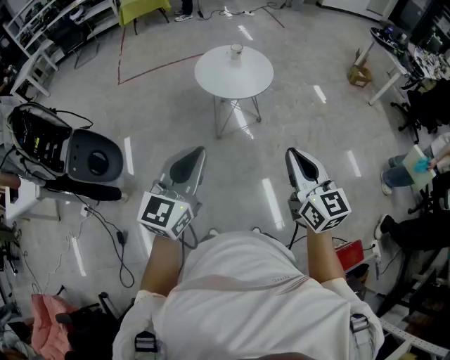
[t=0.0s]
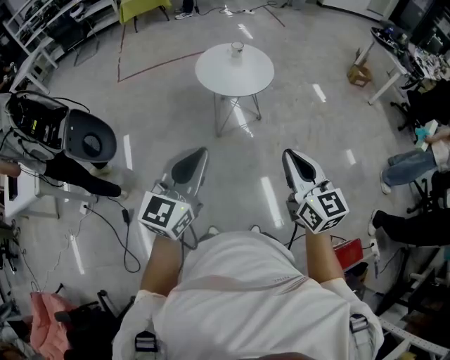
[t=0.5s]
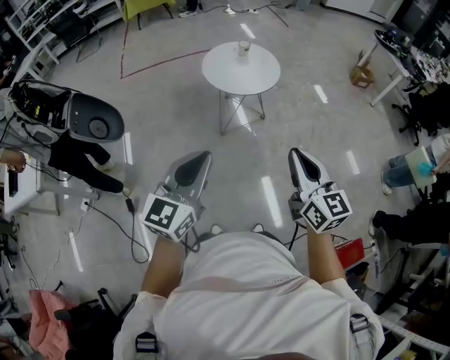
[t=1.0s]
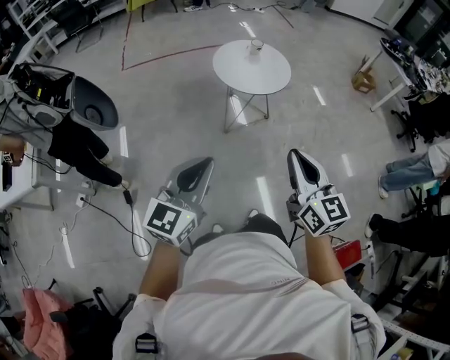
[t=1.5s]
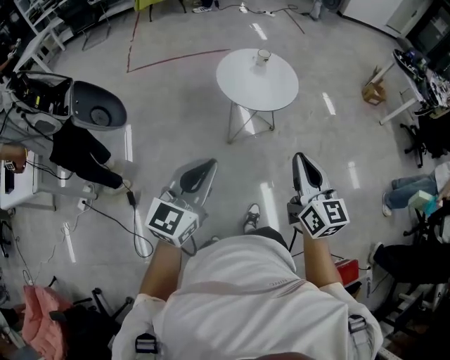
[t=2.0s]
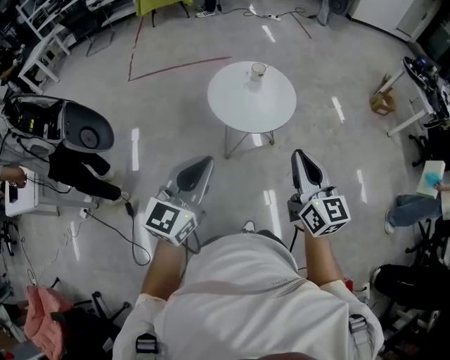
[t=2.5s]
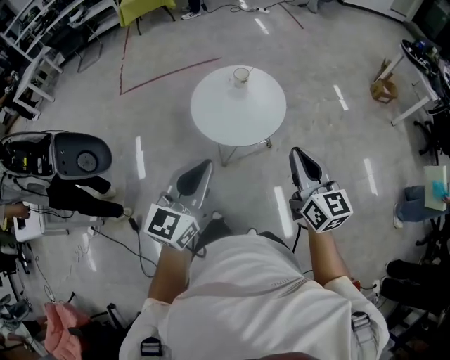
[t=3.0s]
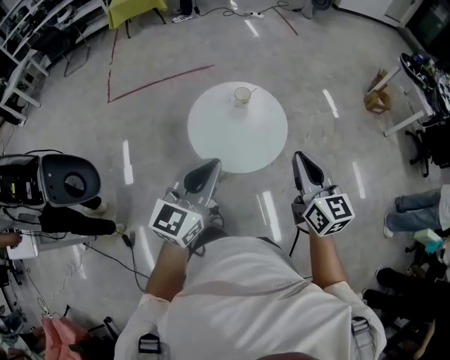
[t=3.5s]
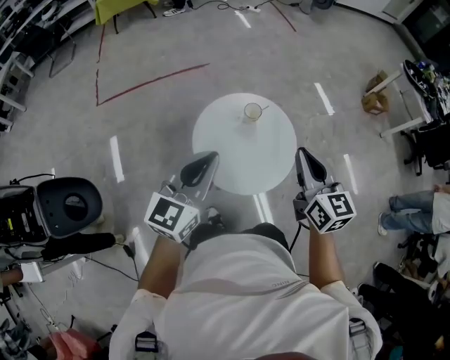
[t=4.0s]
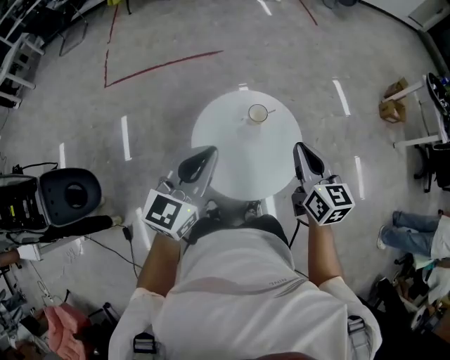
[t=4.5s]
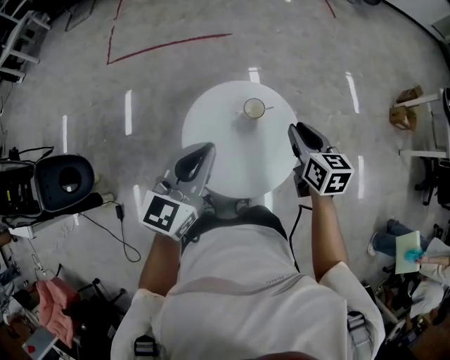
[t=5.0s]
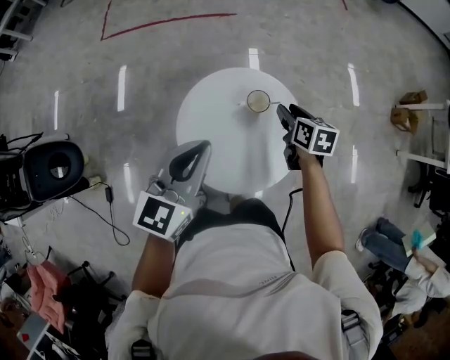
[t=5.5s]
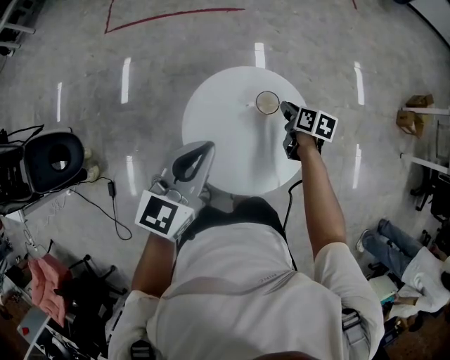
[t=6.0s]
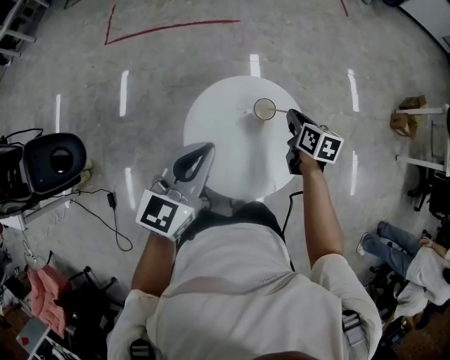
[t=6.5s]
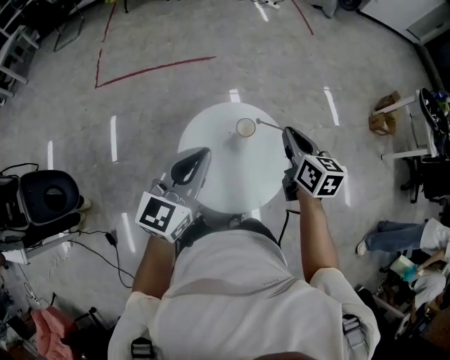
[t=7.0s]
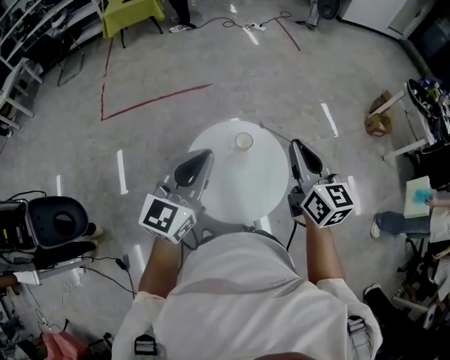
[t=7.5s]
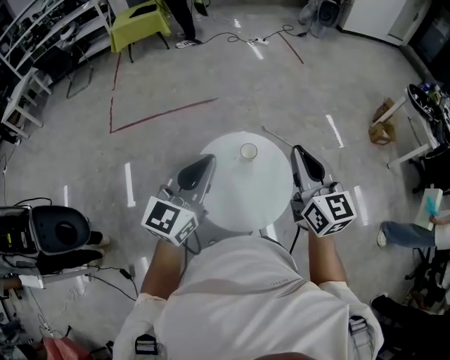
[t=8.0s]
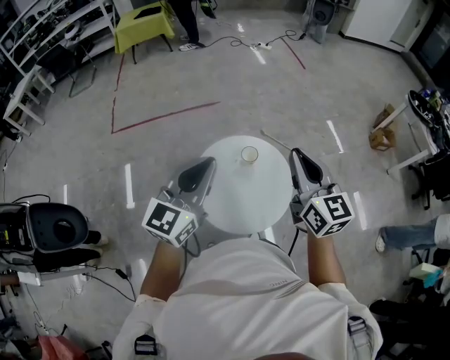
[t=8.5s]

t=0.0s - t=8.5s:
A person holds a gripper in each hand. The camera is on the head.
t=0.0s - t=2.0s: The right gripper moves forward and to the left, some 15 cm. The left gripper travels to the left and forward by approximately 15 cm.
t=2.0s - t=4.0s: Both grippers are carried forward, roughly 70 cm.
t=4.0s - t=6.5s: The right gripper travels forward and downward by about 40 cm, rotates approximately 40 degrees, and opens, then closes again. The left gripper heads forward and downward, covering roughly 20 cm.
t=6.5s - t=8.5s: The right gripper is displaced upward and backward by approximately 40 cm, and tips its fingers upward by some 40 degrees. The left gripper moves upward and backward, some 20 cm, and swivels about 20 degrees.

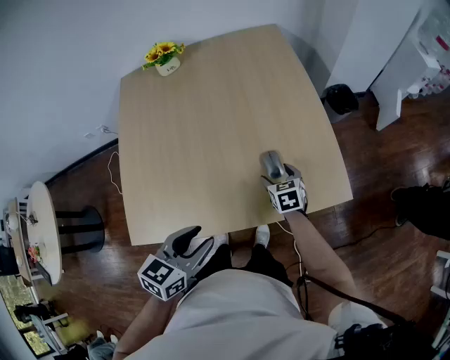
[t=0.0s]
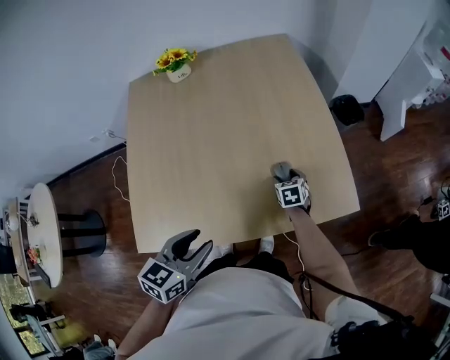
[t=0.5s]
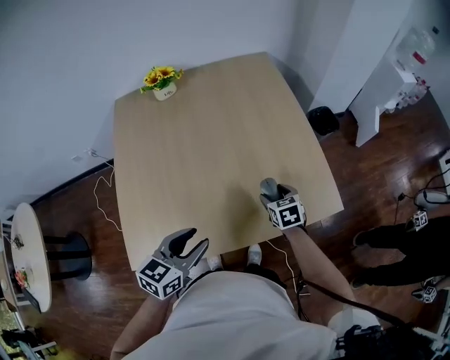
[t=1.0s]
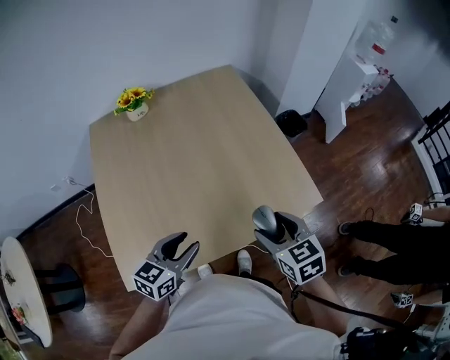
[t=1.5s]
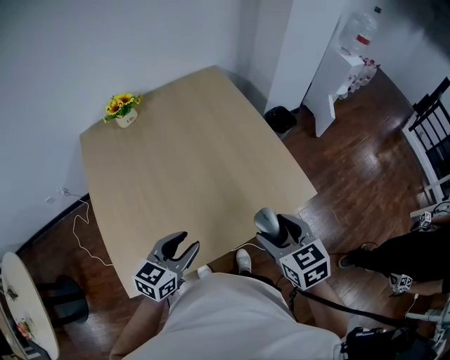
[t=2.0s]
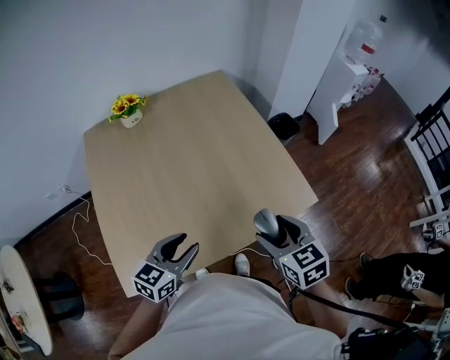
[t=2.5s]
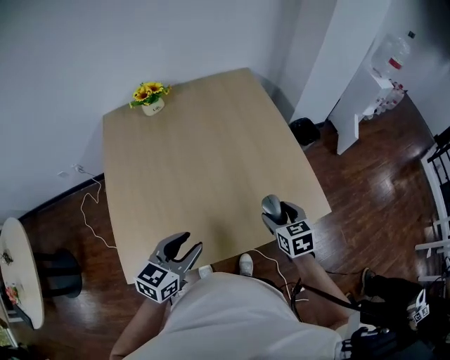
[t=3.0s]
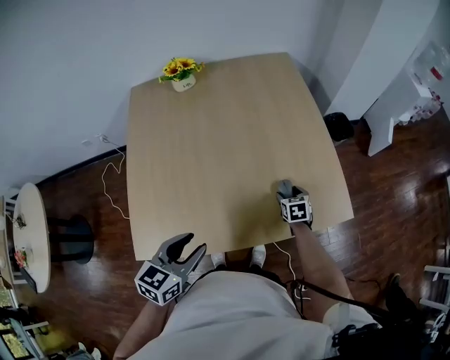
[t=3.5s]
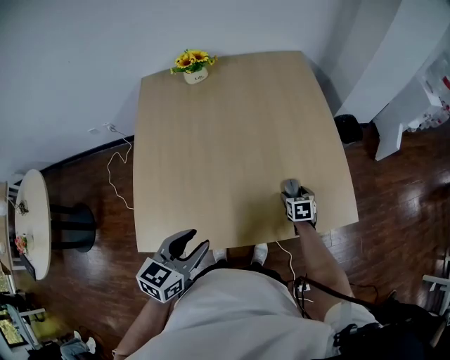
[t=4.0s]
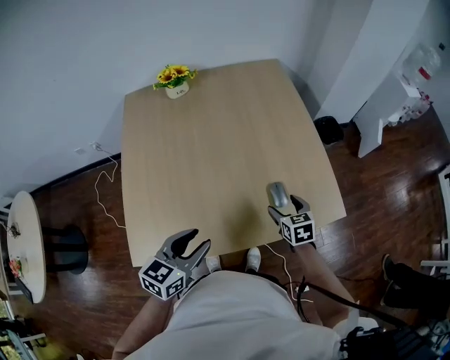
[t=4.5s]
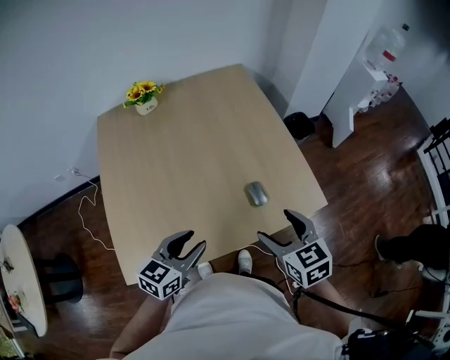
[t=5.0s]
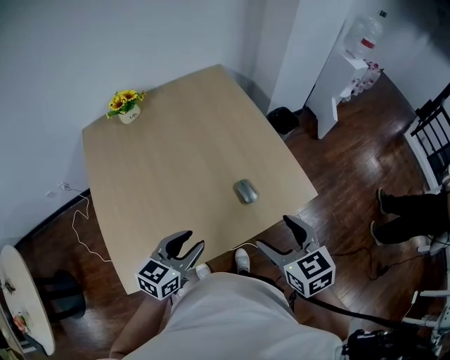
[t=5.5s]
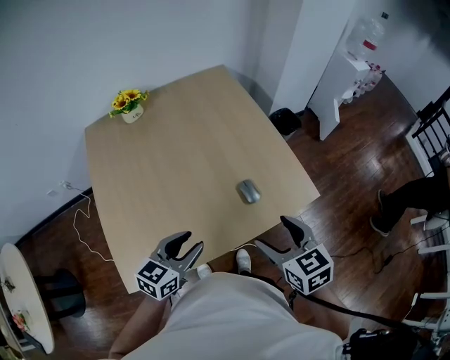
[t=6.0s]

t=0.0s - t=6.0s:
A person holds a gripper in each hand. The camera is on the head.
t=0.0s - t=2.0s: The left gripper shifts approximately 5 cm to the left; the right gripper moves upward and backward, approximately 30 cm.
t=2.0s - t=4.0s: The right gripper shifts about 35 cm downward and forward. The left gripper ends up approximately 5 cm from where it was, and rotates about 20 degrees.
t=4.0s - t=6.0s: The left gripper changes place by approximately 5 cm, and rotates approximately 20 degrees, while the right gripper moves upward and backward, about 35 cm, and changes its angle by about 20 degrees.

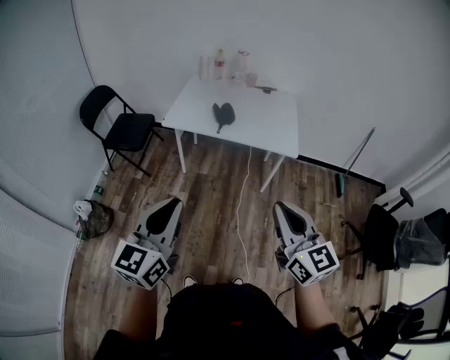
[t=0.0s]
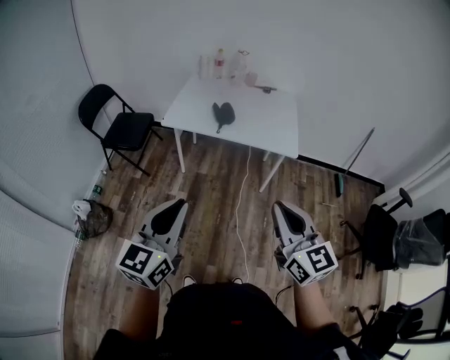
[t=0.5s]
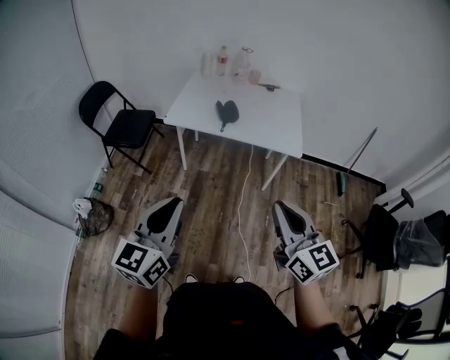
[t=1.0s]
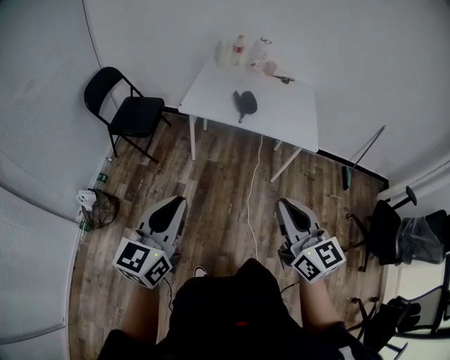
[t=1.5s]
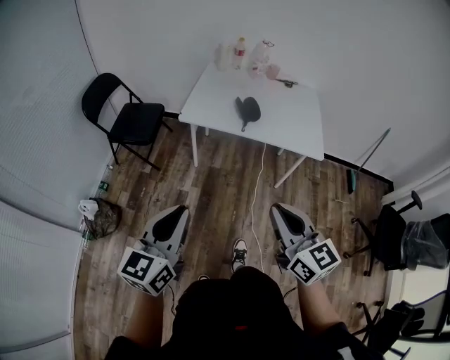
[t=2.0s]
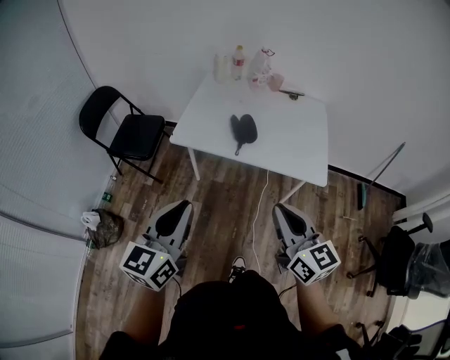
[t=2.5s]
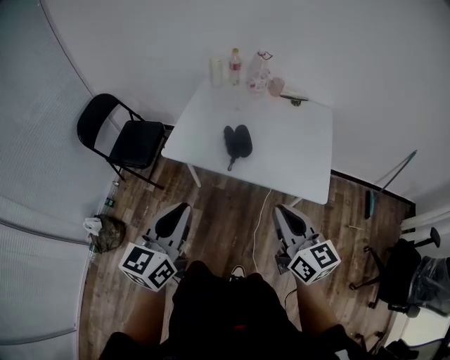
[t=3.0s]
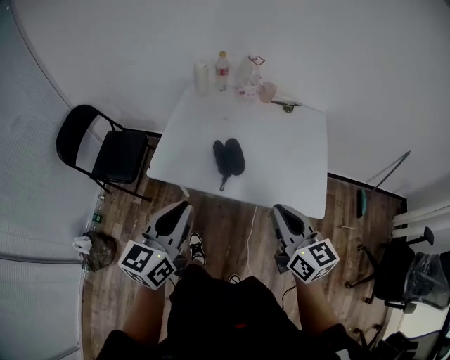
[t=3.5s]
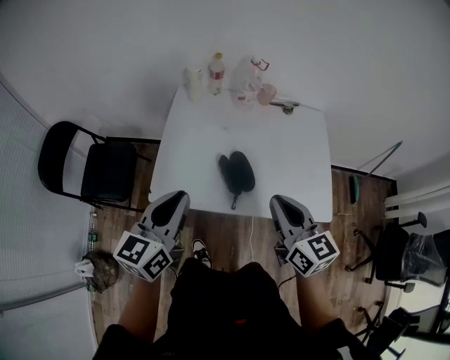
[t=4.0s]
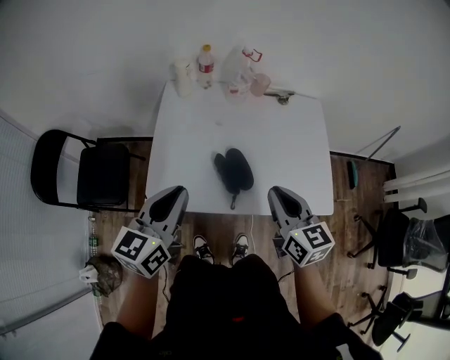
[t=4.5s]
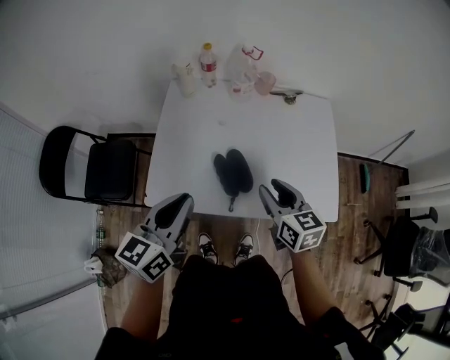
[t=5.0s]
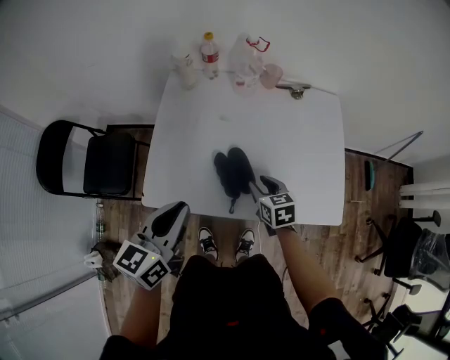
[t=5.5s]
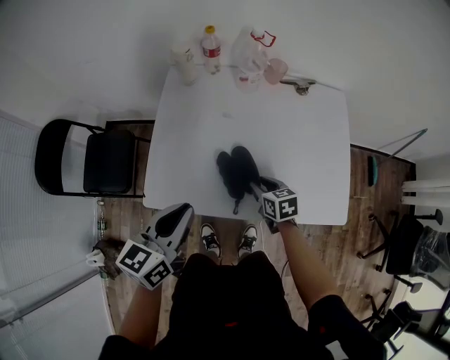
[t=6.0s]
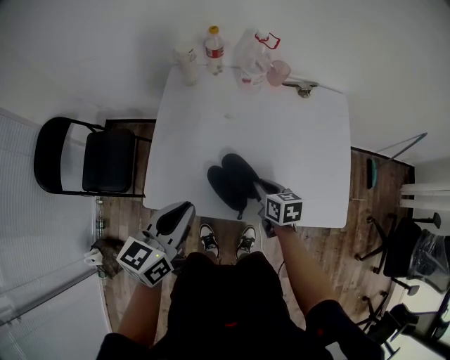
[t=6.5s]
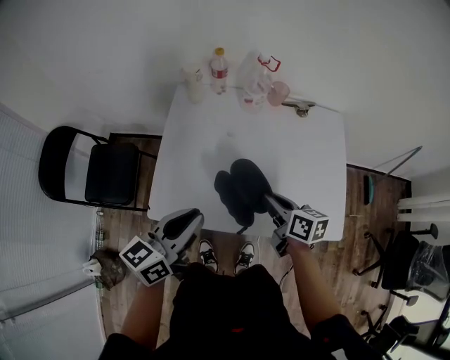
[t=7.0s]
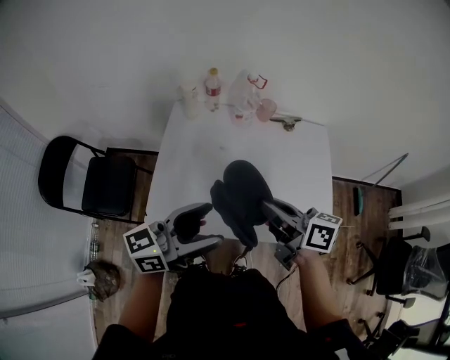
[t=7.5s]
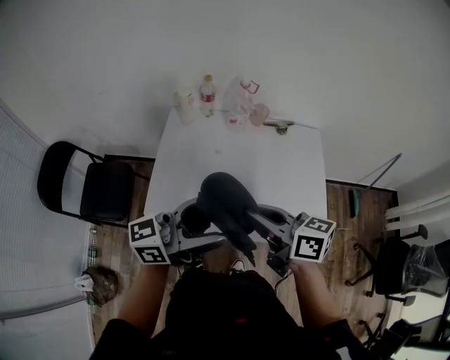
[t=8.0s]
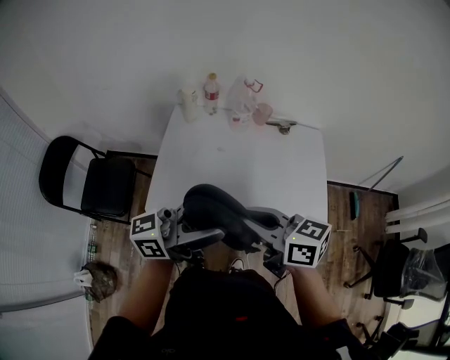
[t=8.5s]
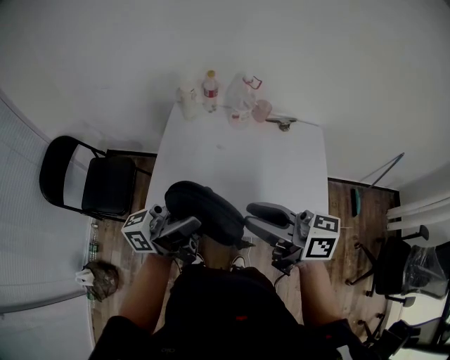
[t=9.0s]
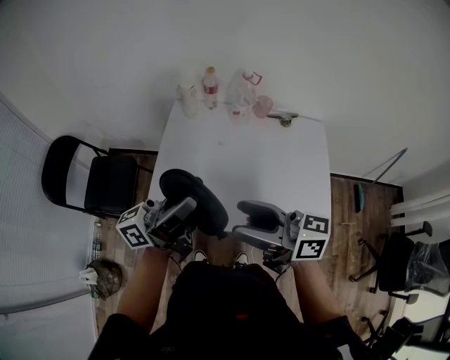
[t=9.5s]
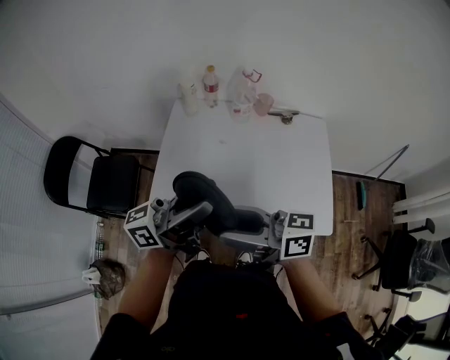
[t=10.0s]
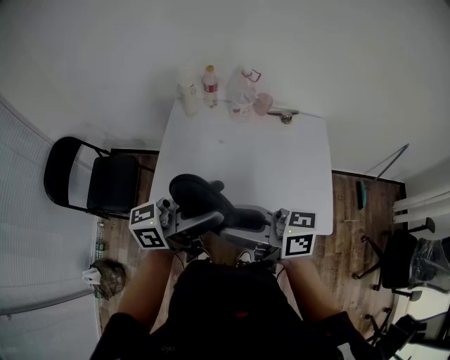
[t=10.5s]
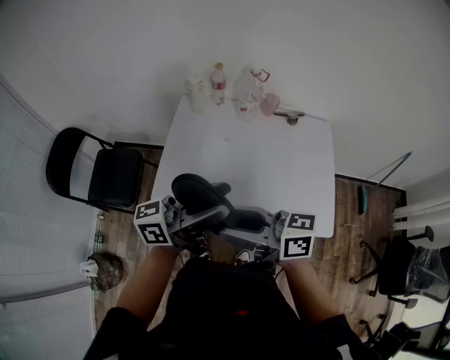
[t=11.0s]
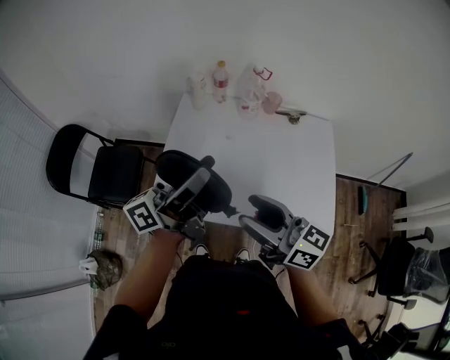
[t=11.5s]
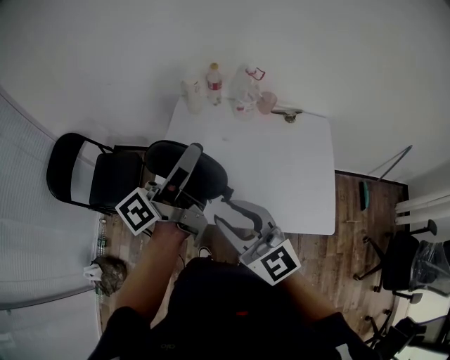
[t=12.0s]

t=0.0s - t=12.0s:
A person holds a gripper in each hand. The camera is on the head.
t=0.0s - t=2.0s: The two grippers go roughly 15 cm to the left, forward and downward.
t=2.0s - t=4.0s: The two grippers travel together, forward, roughly 50 cm.
t=4.0s - t=6.0s: The left gripper shifts roughly 10 cm downward and forward. The right gripper goes about 35 cm downward and forward, angles its fingers downward, by roughly 30 degrees, and opens up.
t=6.0s - t=8.0s: The left gripper moves upward and to the right, approximately 15 cm, points its fingers about 40 degrees further upward, and opens up; the right gripper goes approximately 30 cm upward, and tilts its fingers some 40 degrees upward.
t=8.0s - t=10.0s: The right gripper changes place by some 10 cm, swivels about 20 degrees, and opens up.
t=10.0s - t=12.0s: The right gripper rotates around the line of its fingers by about 50 degrees, counterclockwise from behind, and closes, while the left gripper changes place by roughly 10 cm, and changes its angle by about 30 degrees.
